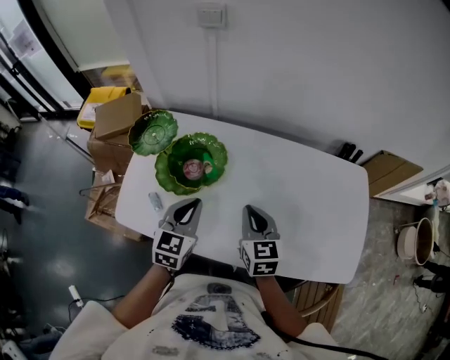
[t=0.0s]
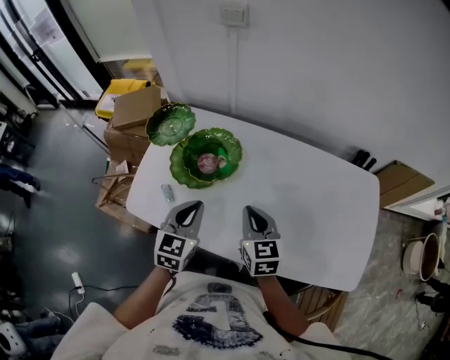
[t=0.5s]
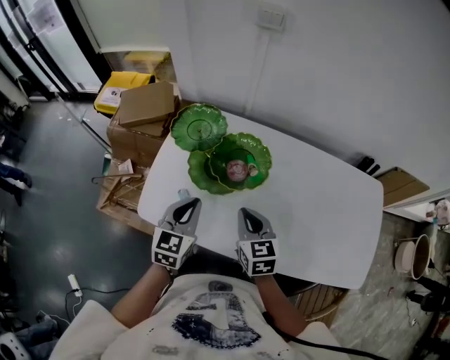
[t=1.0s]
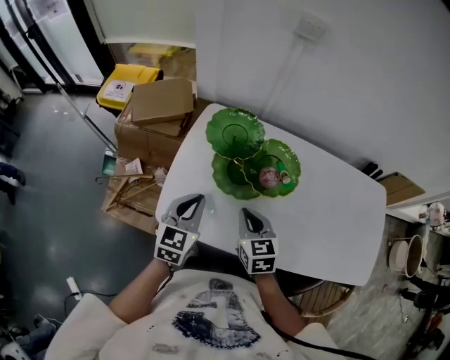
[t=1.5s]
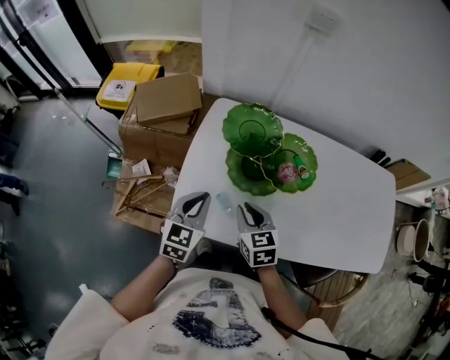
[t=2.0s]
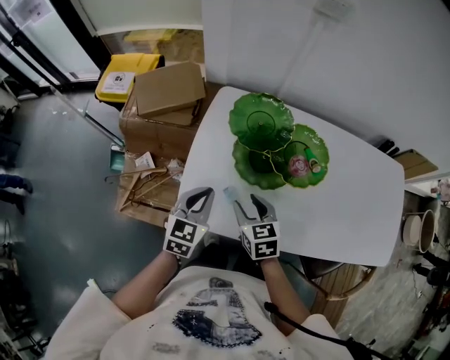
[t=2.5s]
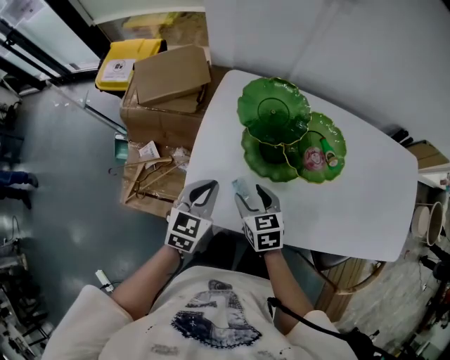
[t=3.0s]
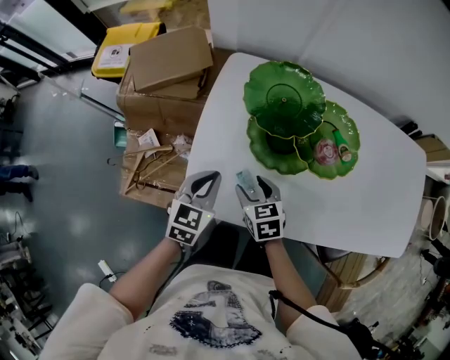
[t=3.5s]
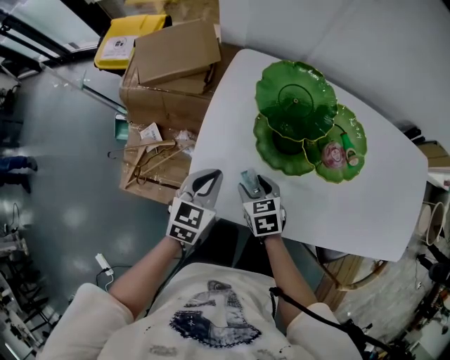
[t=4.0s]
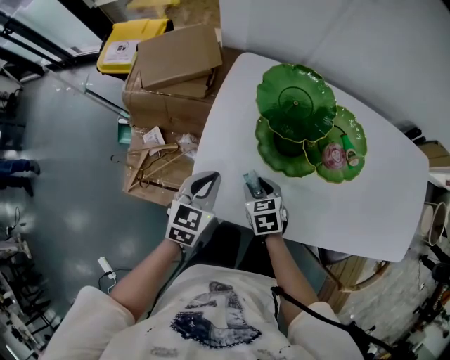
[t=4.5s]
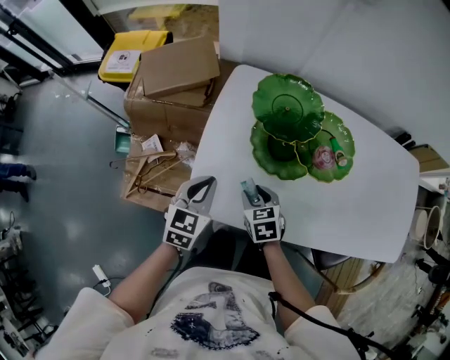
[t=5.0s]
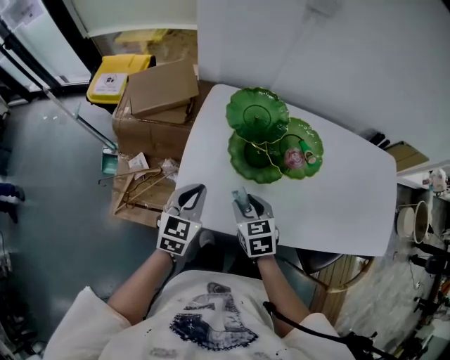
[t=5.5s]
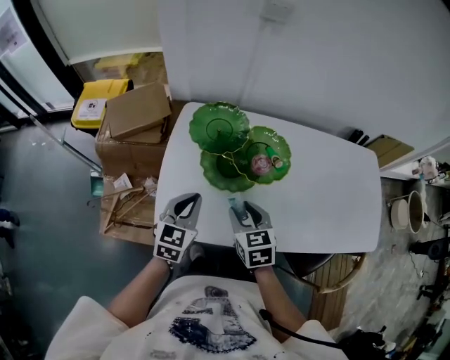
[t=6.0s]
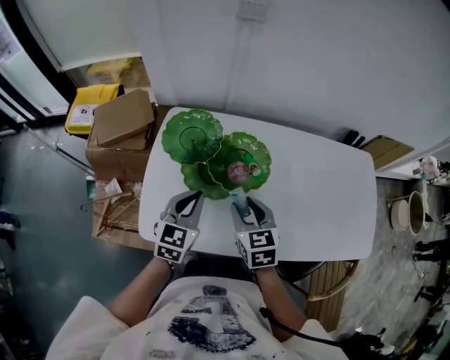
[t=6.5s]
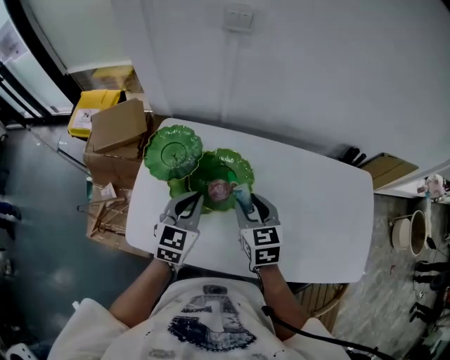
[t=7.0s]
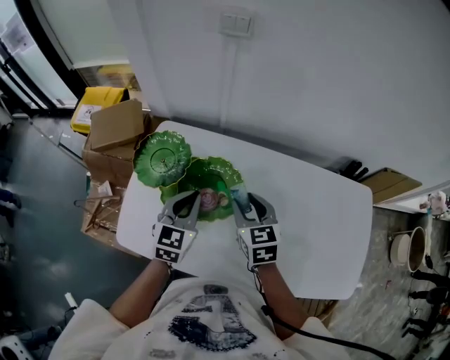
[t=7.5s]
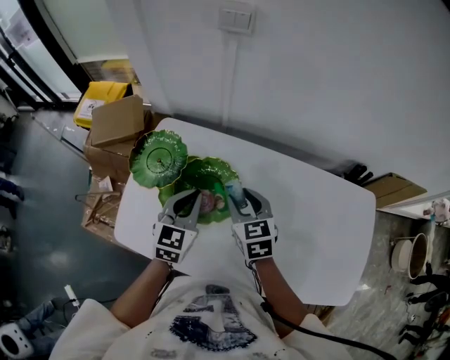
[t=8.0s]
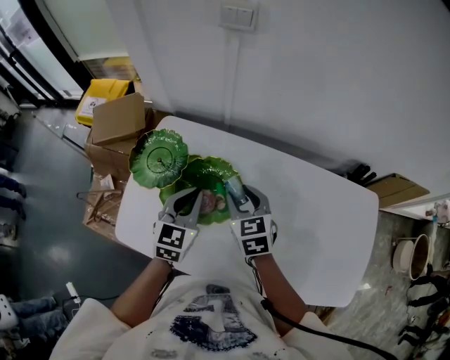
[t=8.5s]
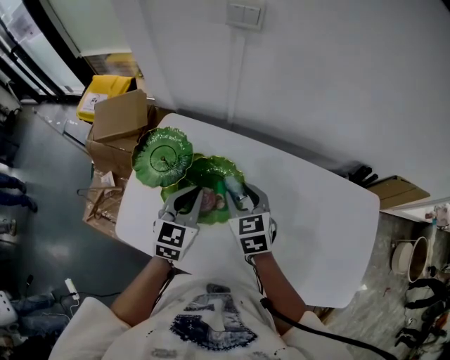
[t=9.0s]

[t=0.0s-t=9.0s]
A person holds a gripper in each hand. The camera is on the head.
t=0.0s to t=2.0s: The two grippers go approximately 30 cm to the left.
t=2.0s to t=4.5s: The left gripper shifts roughly 10 cm downward. The right gripper travels downward by some 15 cm.
t=4.5s to t=7.0s: Both grippers move to the right and upward, about 30 cm. The right gripper turns by some 30 degrees.
t=7.0s to t=9.0s: The right gripper goes some 5 cm forward. The left gripper moves about 5 cm.

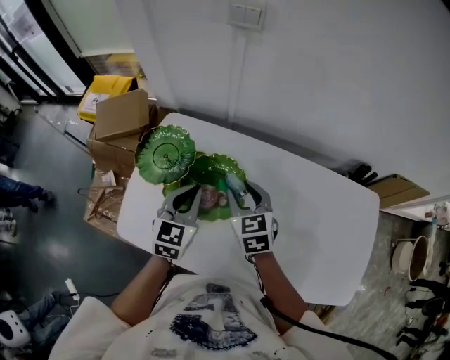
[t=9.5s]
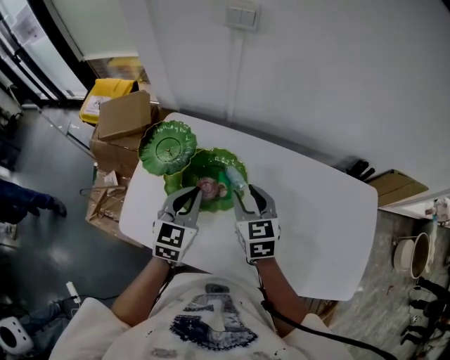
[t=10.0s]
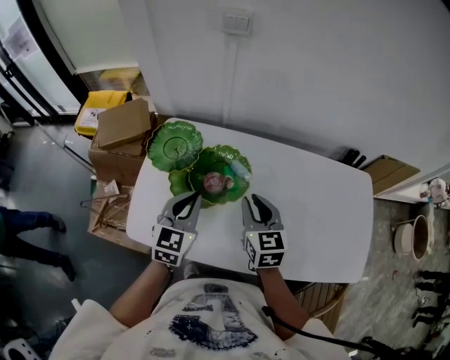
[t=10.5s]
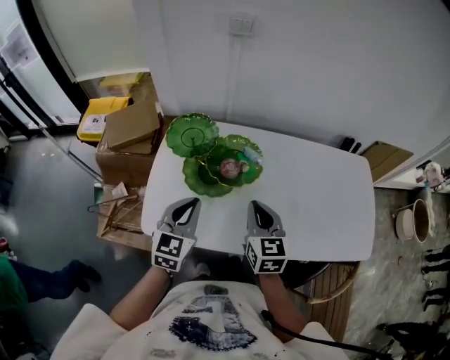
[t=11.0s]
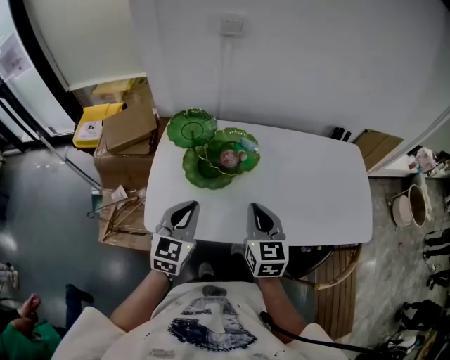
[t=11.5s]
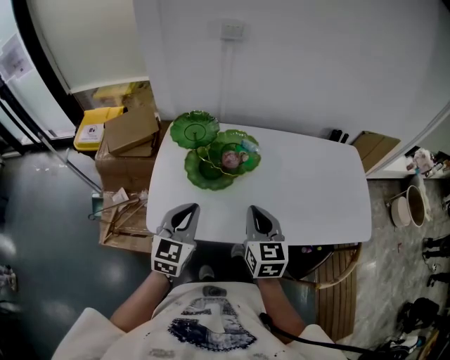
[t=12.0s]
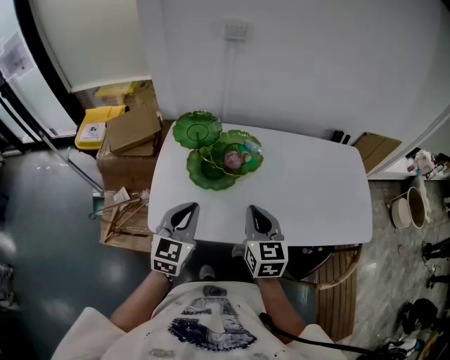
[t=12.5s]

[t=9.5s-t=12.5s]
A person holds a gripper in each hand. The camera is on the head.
t=9.5s to t=11.0s: The right gripper travels backward by some 20 cm, changes its angle by approximately 20 degrees, and closes. The left gripper goes about 15 cm backward and to the left.
t=11.0s to t=12.5s: The grippers both shift backward by about 5 cm.

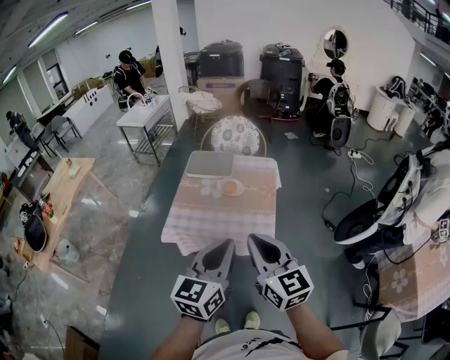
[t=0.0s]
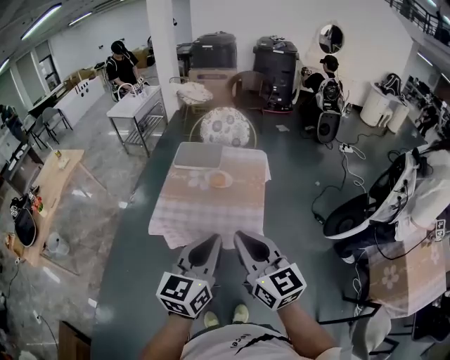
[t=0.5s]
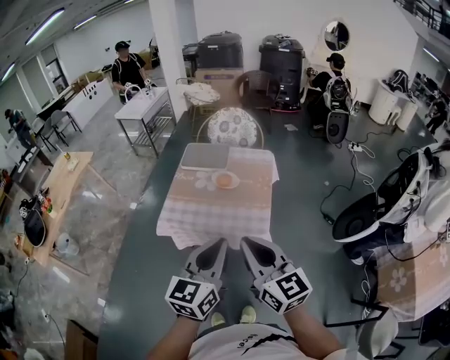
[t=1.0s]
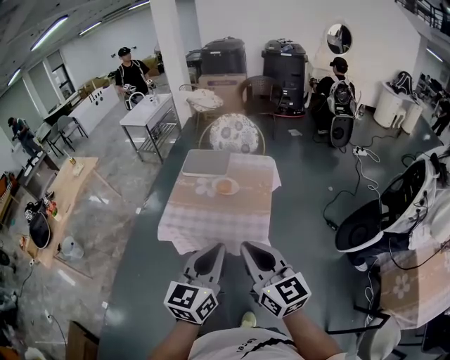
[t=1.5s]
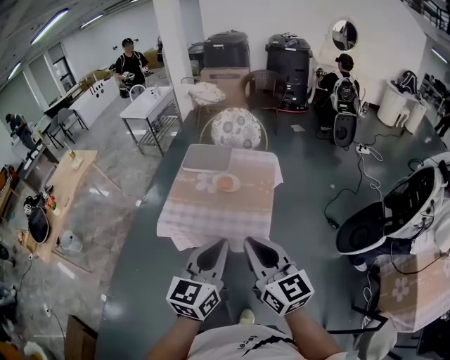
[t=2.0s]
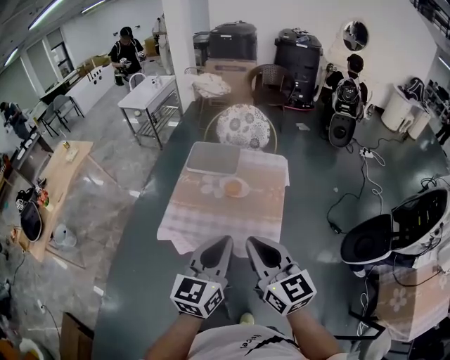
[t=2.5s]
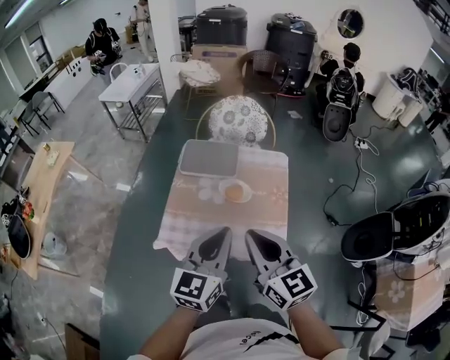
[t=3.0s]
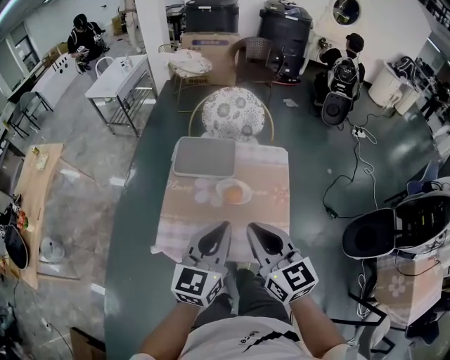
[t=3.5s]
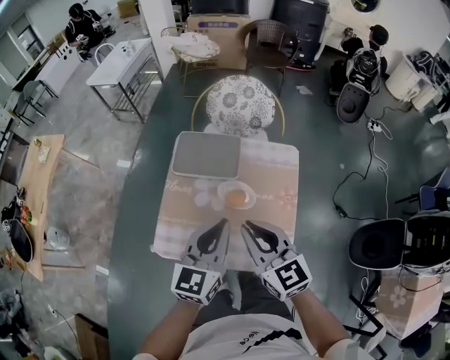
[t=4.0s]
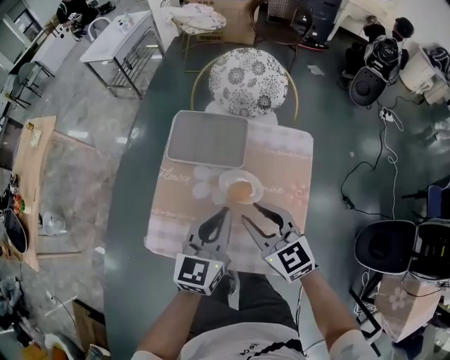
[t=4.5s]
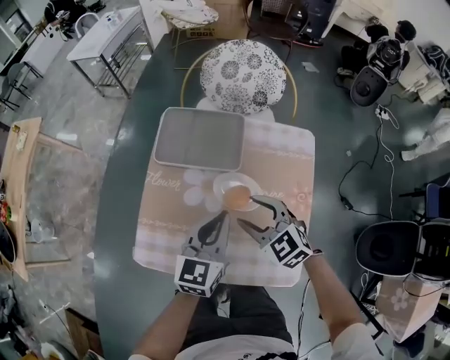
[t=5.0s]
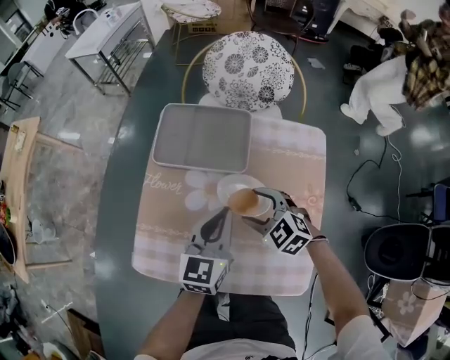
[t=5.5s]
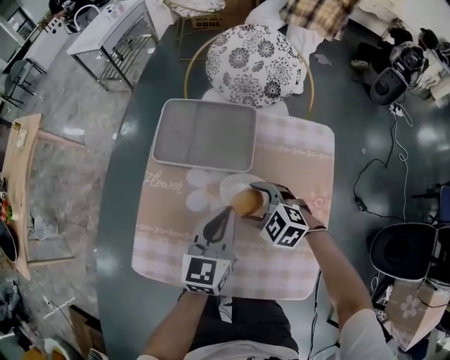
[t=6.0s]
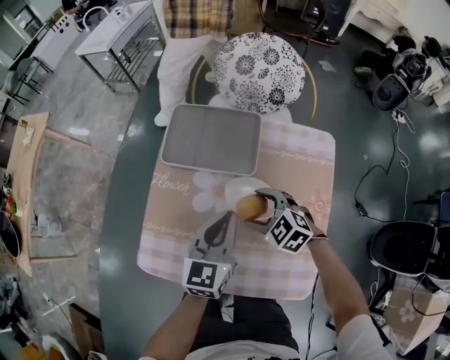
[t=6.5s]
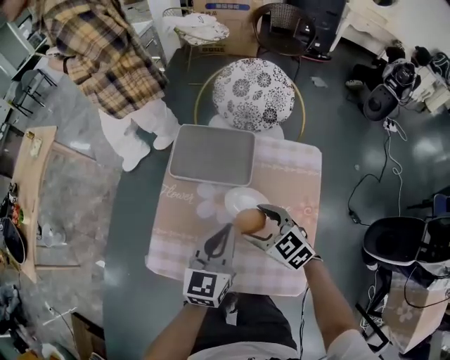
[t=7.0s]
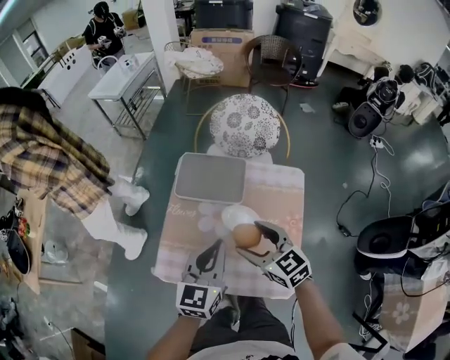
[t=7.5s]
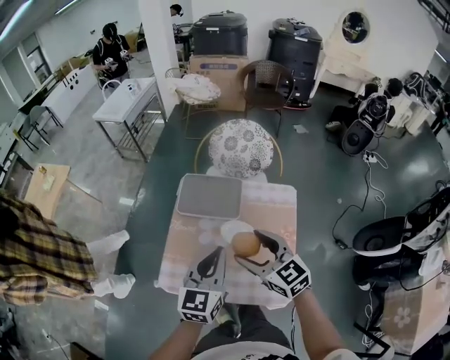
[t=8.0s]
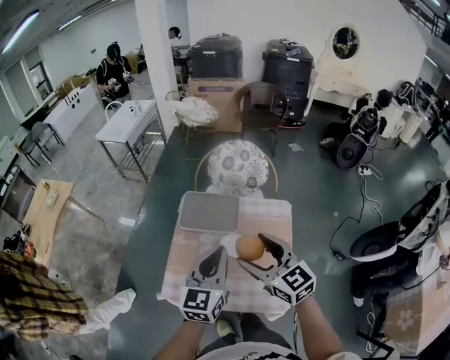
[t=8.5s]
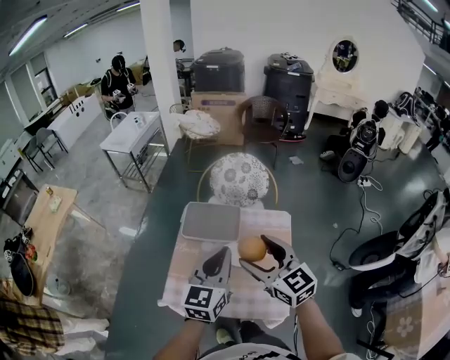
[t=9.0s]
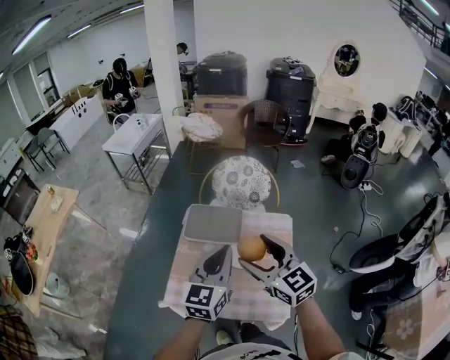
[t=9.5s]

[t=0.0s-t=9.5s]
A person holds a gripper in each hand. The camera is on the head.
t=0.0s to t=2.0s: The two grippers go some 5 cm to the right.
t=2.0s to t=4.0s: Both grippers travel together forward, approximately 35 cm.
t=4.0s to t=5.5s: The left gripper heads downward and forward, covering about 25 cm, while the right gripper goes some 30 cm downward, angles its fingers downward, by approximately 30 degrees, and opens its fingers.
t=5.5s to t=7.5s: The two grippers go roughly 20 cm upward. The right gripper rotates roughly 30 degrees.
t=7.5s to t=9.5s: The grippers both shift upward by about 15 cm.

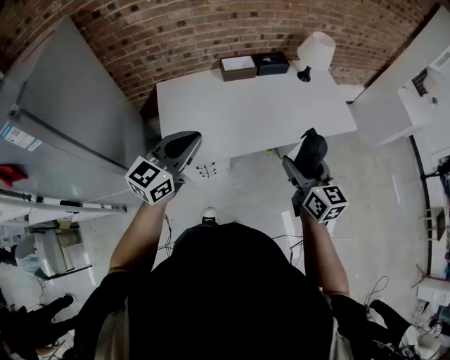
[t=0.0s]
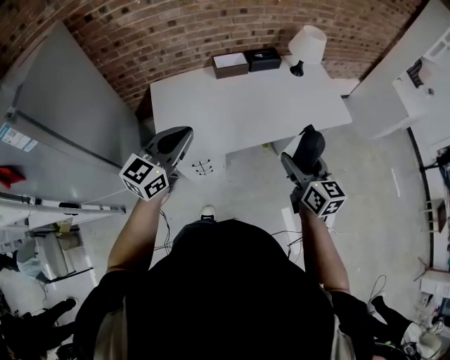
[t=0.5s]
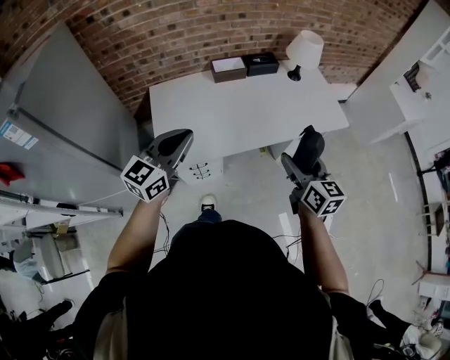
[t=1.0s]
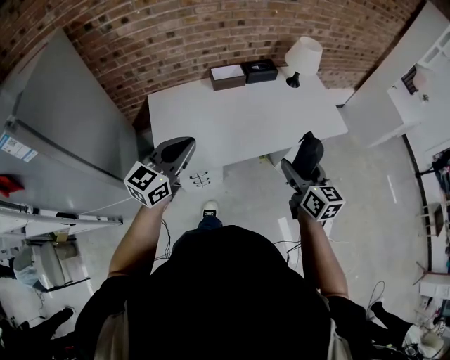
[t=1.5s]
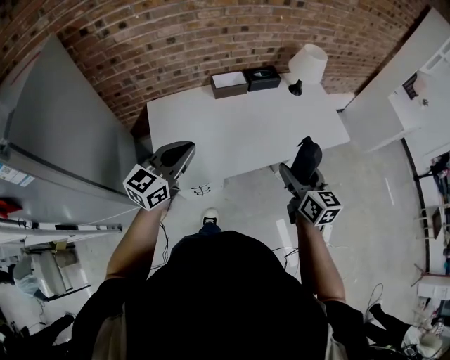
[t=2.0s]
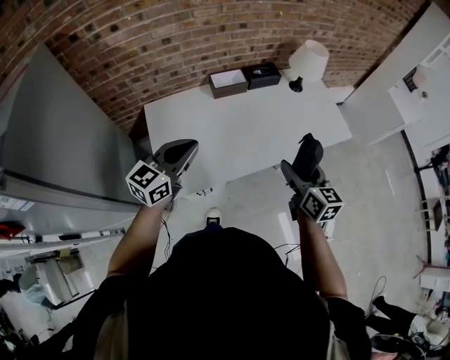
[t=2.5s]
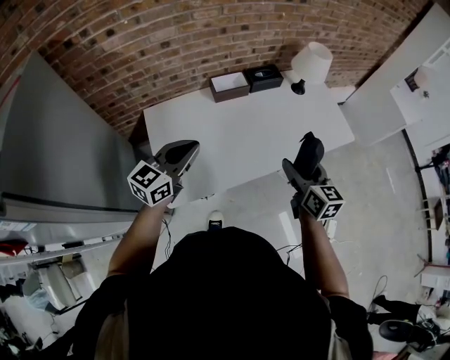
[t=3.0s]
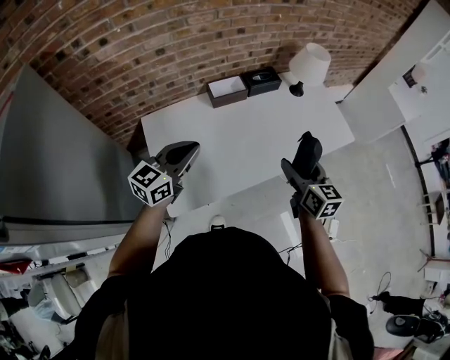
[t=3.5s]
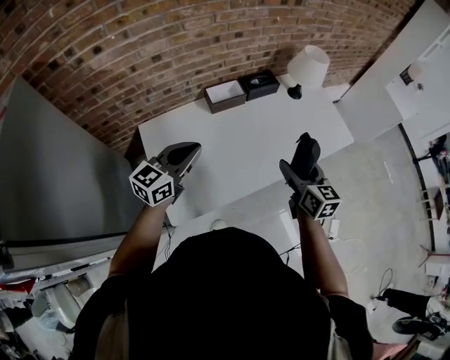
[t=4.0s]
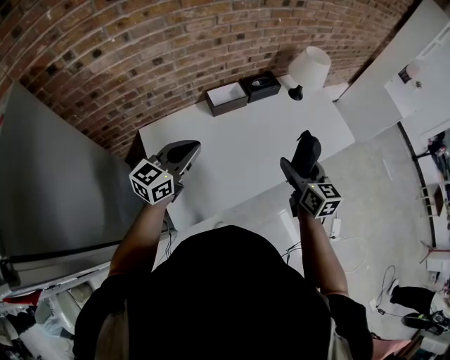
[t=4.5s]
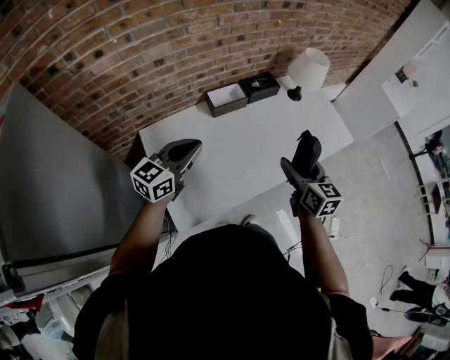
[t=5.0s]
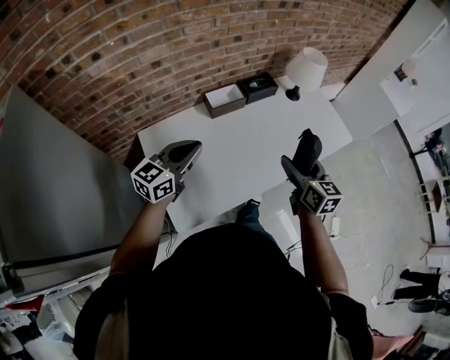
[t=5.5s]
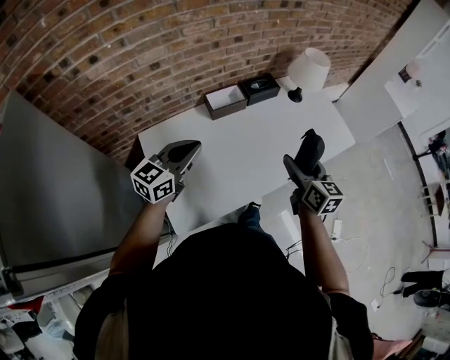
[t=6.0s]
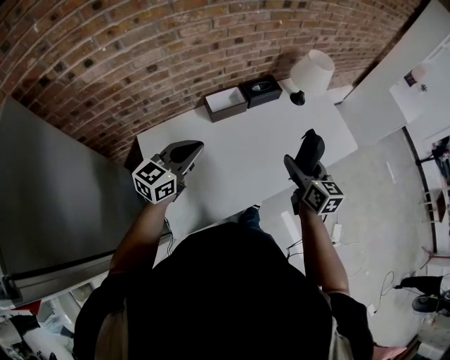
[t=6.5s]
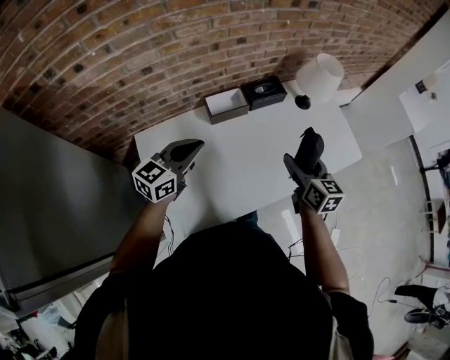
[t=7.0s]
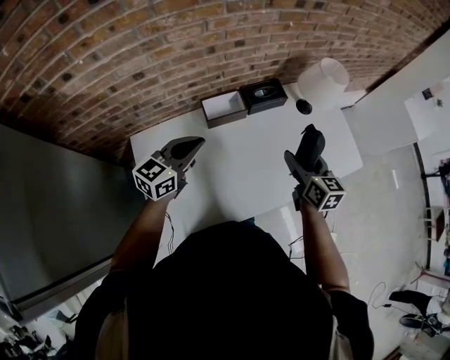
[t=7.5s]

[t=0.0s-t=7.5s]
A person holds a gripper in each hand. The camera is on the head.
t=0.0s to t=2.0s: Both grippers travel together forward, some 5 cm.
t=2.0s to t=4.0s: The right gripper moves forward and to the left, roughly 15 cm. The left gripper shifts approximately 15 cm forward.
t=4.0s to t=5.5s: The grippers move only a little.
t=5.5s to t=7.5s: The two grippers go about 20 cm forward.
